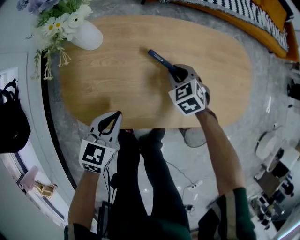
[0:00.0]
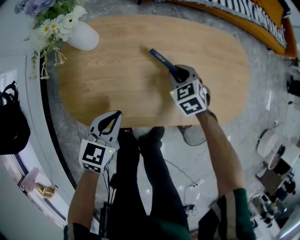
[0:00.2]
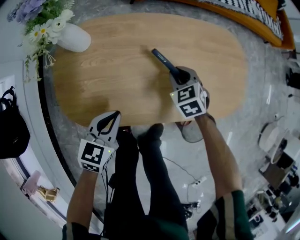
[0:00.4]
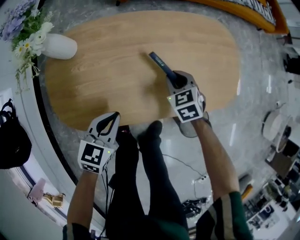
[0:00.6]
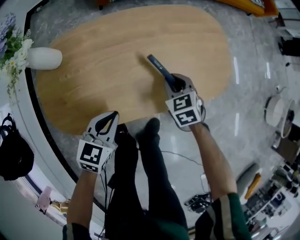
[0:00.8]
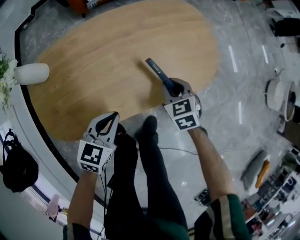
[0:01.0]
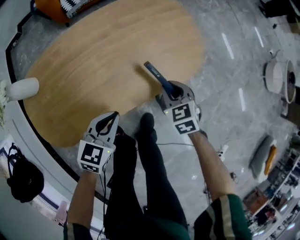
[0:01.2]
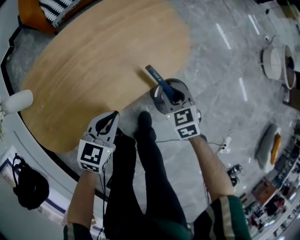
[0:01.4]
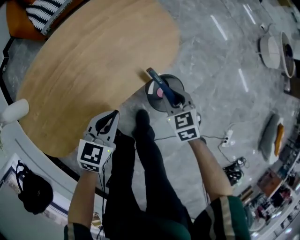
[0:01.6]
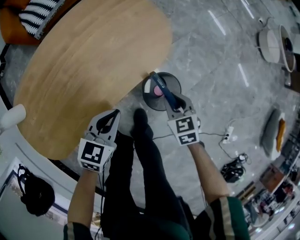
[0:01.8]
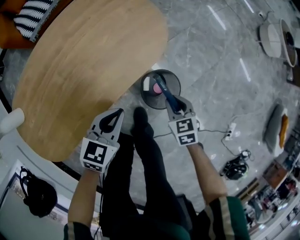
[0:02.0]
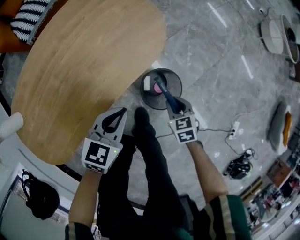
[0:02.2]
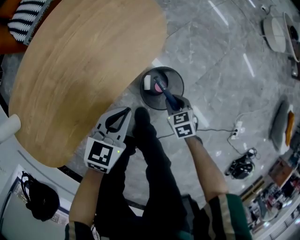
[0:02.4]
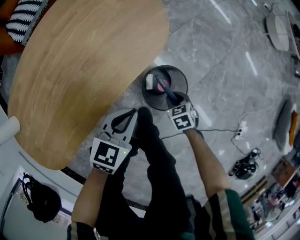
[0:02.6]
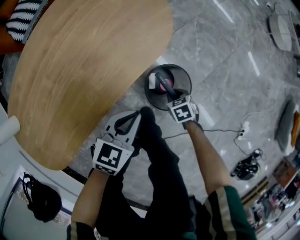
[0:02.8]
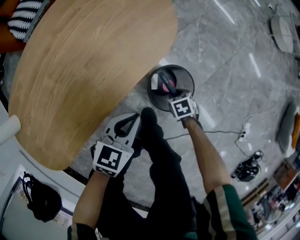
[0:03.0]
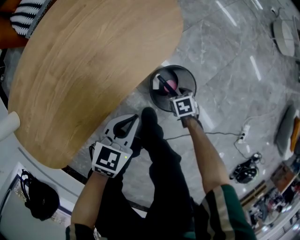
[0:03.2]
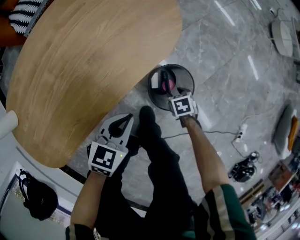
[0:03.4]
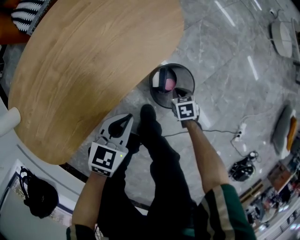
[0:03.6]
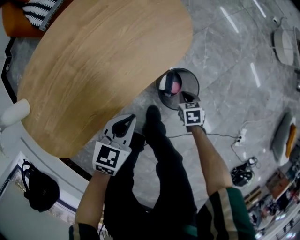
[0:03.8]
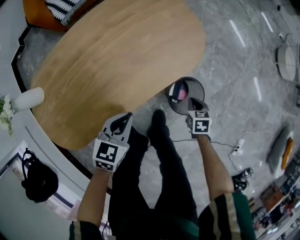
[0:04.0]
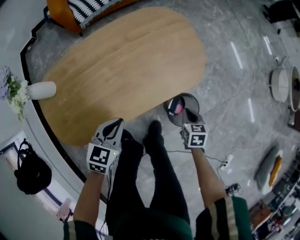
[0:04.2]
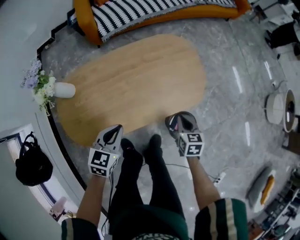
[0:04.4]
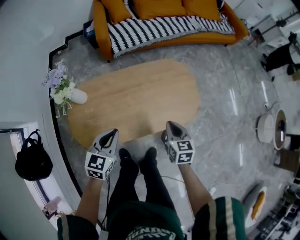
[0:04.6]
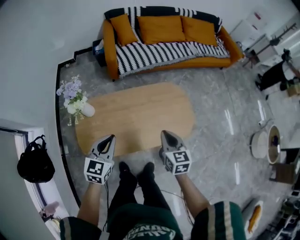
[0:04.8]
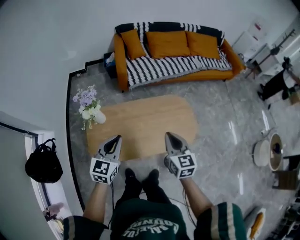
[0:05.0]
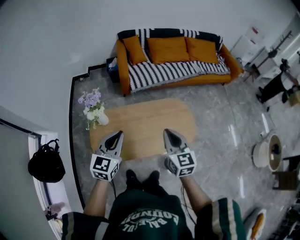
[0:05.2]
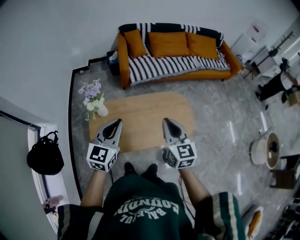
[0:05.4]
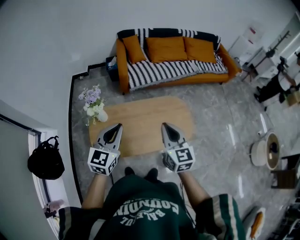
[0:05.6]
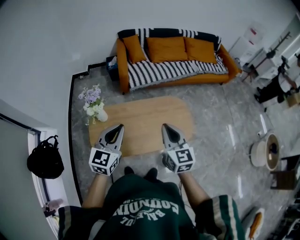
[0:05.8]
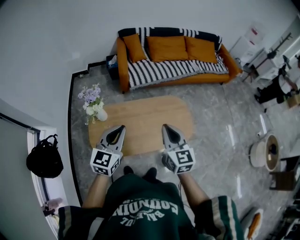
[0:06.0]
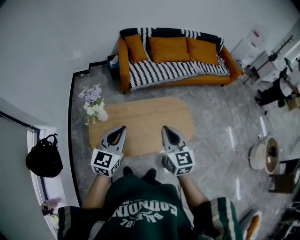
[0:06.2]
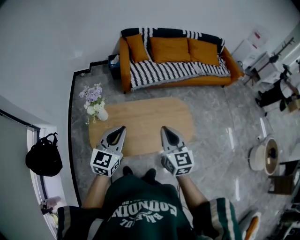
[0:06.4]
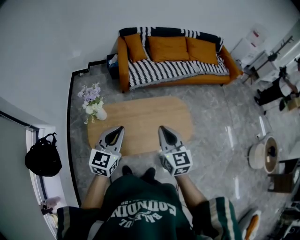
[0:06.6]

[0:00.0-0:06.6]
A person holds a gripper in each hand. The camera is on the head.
0:00.0 to 0:01.6: The right gripper shifts by some 40 cm, and rotates around the line of its fingers by approximately 50 degrees, clockwise from behind, while the left gripper shifts by approximately 30 cm, and turns by about 40 degrees.
0:01.6 to 0:03.2: The left gripper heads downward, covering some 10 cm; the right gripper shifts about 25 cm downward, and changes its angle by roughly 40 degrees.
0:03.2 to 0:05.0: The two grippers go some 60 cm upward. The right gripper tips its fingers upward by roughly 60 degrees, and closes up, while the left gripper changes its angle by about 50 degrees.
0:05.0 to 0:06.6: Both grippers travel together upward, about 10 cm.

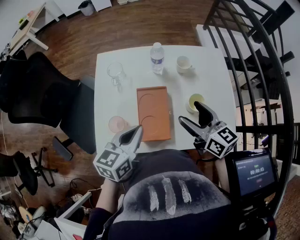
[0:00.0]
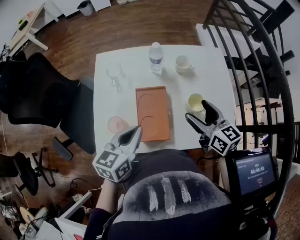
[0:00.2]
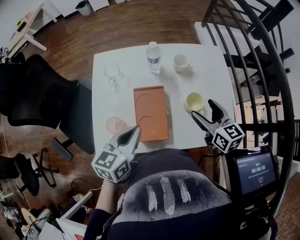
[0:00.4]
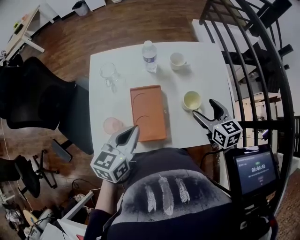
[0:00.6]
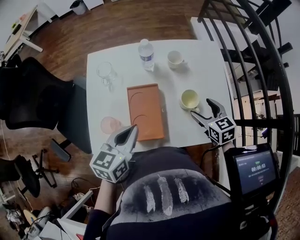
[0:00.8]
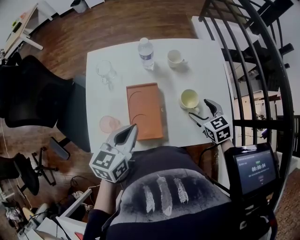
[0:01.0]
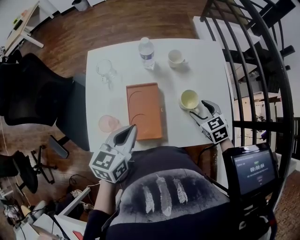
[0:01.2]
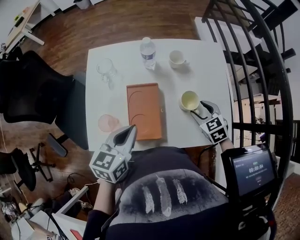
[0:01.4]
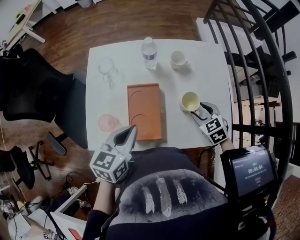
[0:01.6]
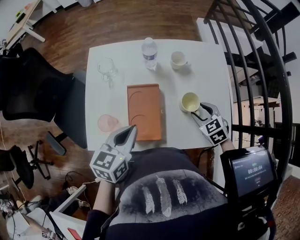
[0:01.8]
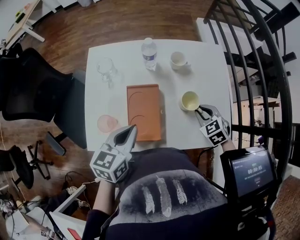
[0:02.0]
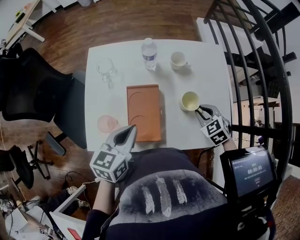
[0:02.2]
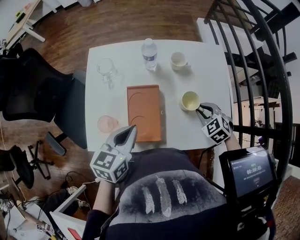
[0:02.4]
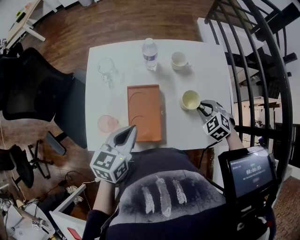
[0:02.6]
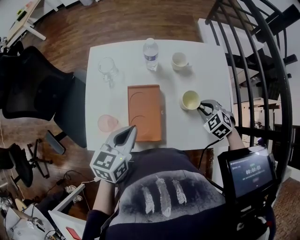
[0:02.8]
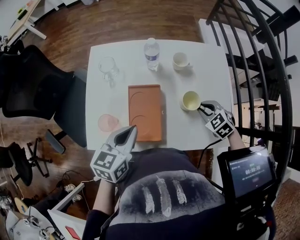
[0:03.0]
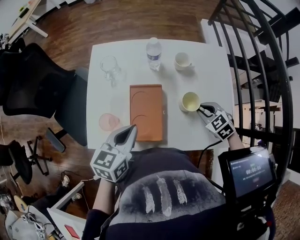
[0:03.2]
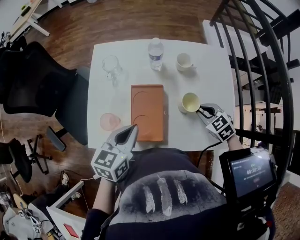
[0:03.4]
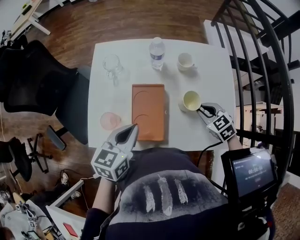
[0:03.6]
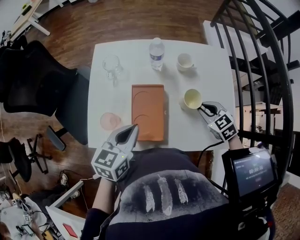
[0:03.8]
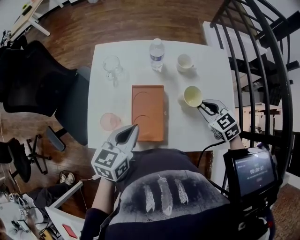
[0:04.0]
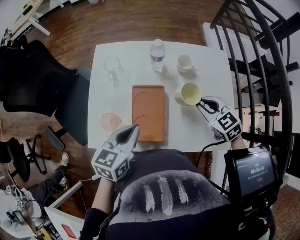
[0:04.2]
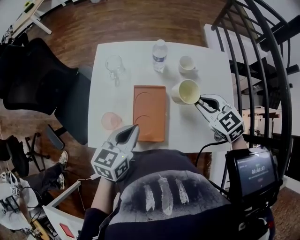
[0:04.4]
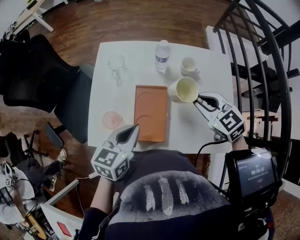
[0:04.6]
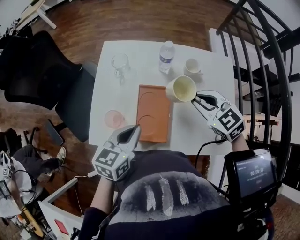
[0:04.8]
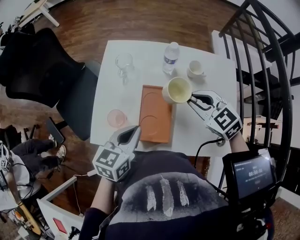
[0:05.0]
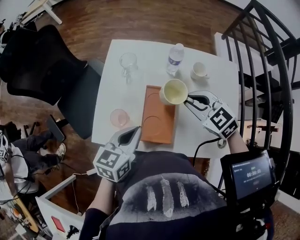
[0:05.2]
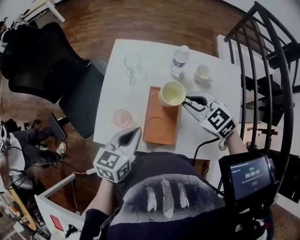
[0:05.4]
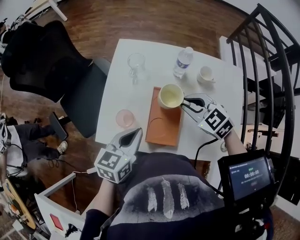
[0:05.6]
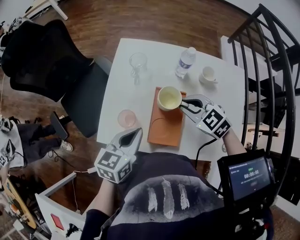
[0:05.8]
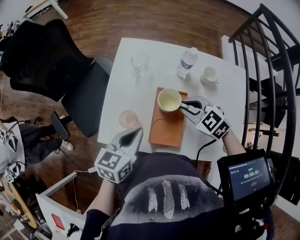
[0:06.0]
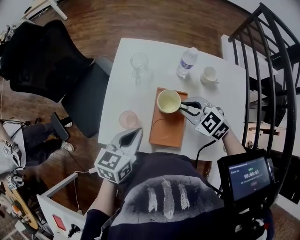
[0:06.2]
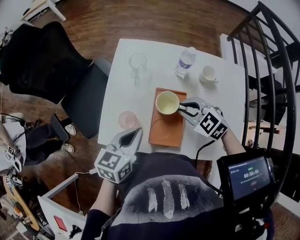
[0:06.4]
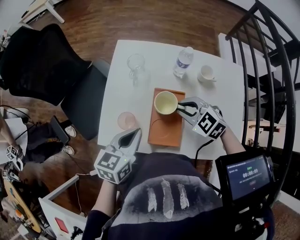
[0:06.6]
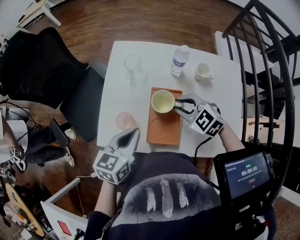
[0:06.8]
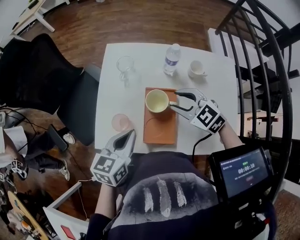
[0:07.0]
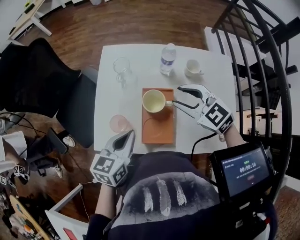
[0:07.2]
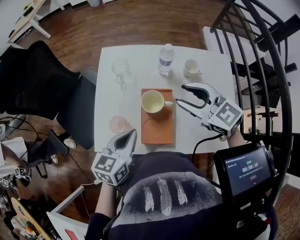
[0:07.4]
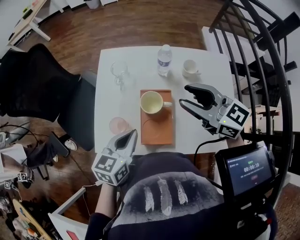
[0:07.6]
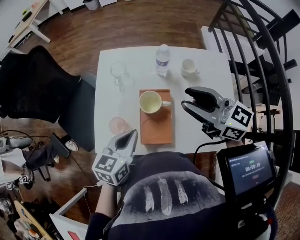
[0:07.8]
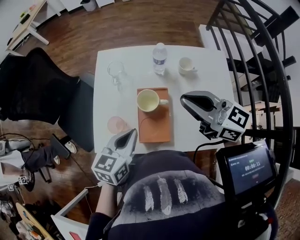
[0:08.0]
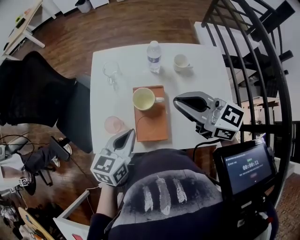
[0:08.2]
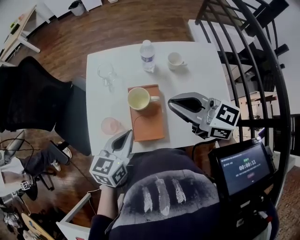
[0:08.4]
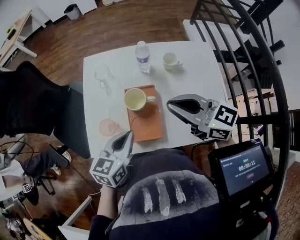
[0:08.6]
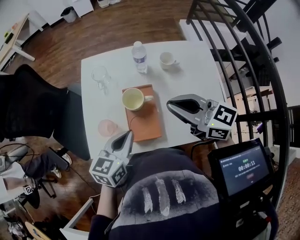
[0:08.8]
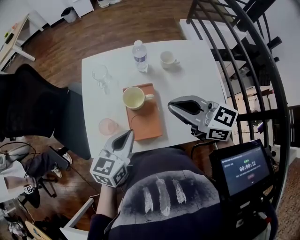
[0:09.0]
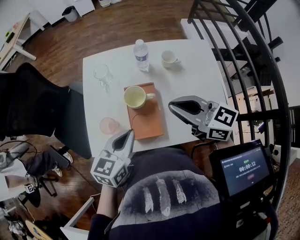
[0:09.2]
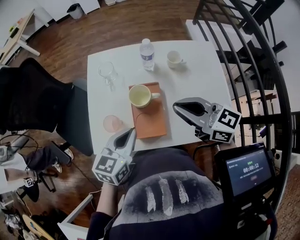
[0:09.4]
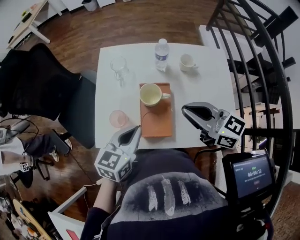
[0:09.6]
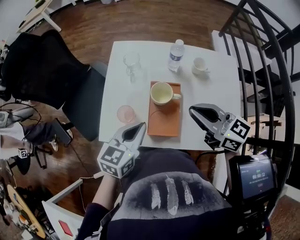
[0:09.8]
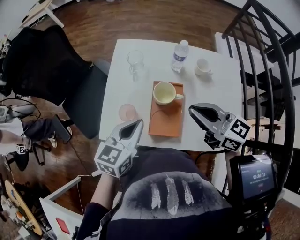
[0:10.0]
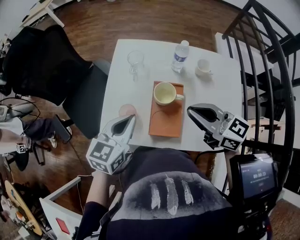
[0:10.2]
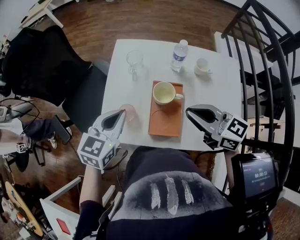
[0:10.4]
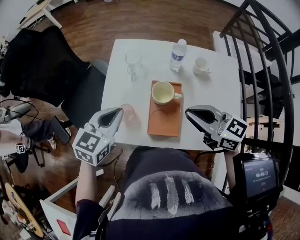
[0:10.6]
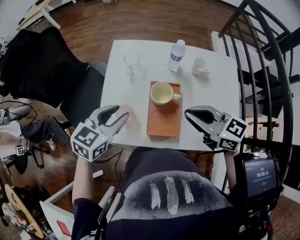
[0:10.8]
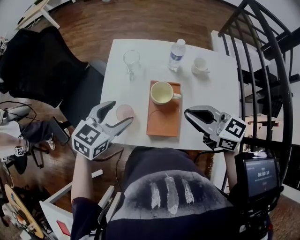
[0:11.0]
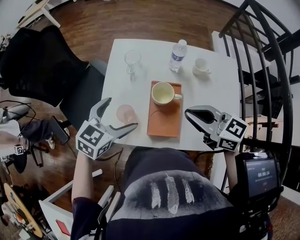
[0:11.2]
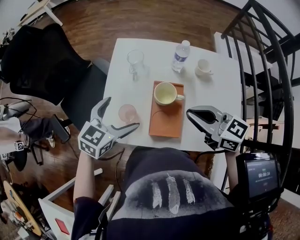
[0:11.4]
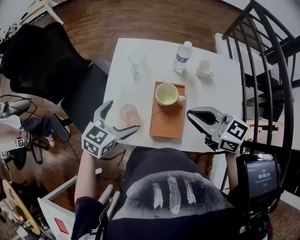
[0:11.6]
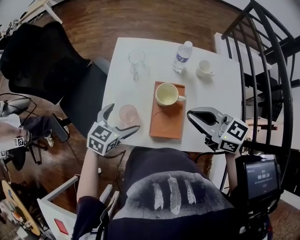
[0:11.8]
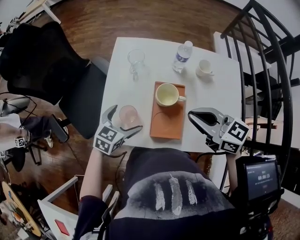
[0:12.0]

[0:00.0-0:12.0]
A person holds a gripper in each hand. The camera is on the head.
0:00.0 to 0:01.6: The right gripper travels downward and to the right by about 20 cm, tips its fingers downward by some 40 degrees, and closes up.
0:01.6 to 0:03.0: The right gripper closes.
0:03.0 to 0:04.4: The right gripper moves upward and to the left, about 15 cm.
0:04.4 to 0:06.0: The left gripper heads to the left, covering approximately 5 cm. Meanwhile the right gripper is displaced to the left by some 15 cm.
0:06.0 to 0:07.6: The right gripper shifts approximately 15 cm upward, and tips its fingers upward by some 30 degrees.
0:07.6 to 0:09.0: The right gripper travels backward by about 5 cm, and closes its fingers.
0:09.0 to 0:10.4: The left gripper shifts some 10 cm to the left and forward.
0:10.4 to 0:12.0: The left gripper travels downward by some 15 cm, and opens its fingers.

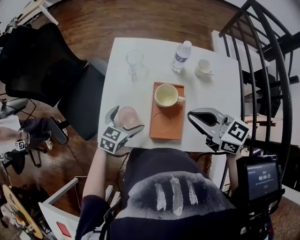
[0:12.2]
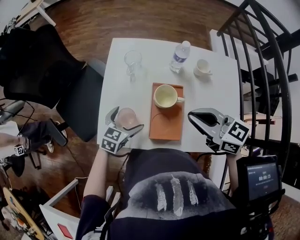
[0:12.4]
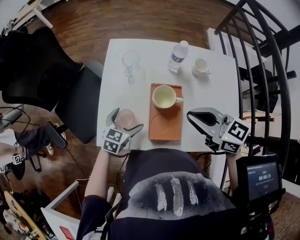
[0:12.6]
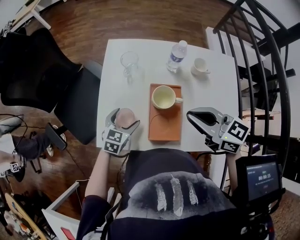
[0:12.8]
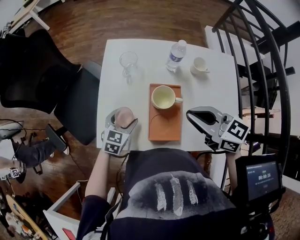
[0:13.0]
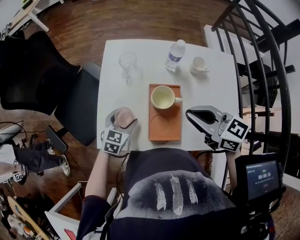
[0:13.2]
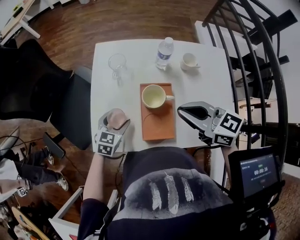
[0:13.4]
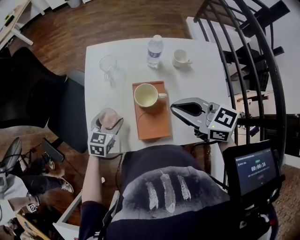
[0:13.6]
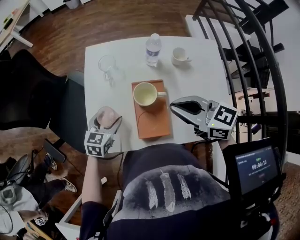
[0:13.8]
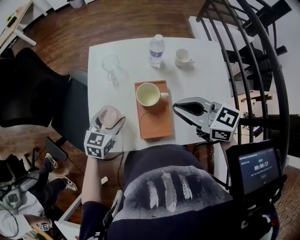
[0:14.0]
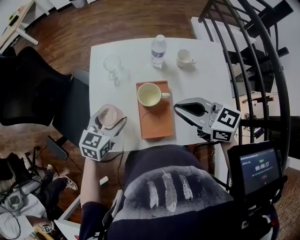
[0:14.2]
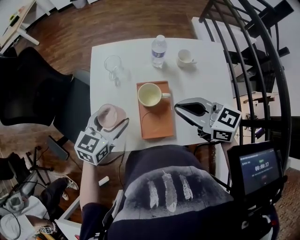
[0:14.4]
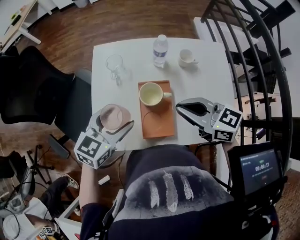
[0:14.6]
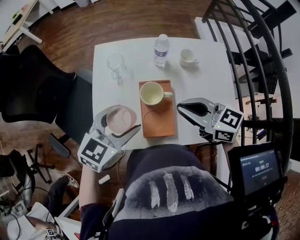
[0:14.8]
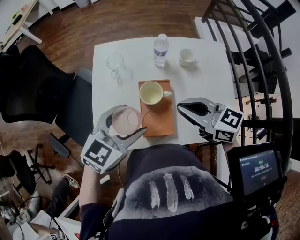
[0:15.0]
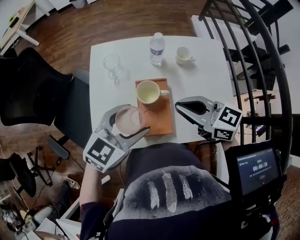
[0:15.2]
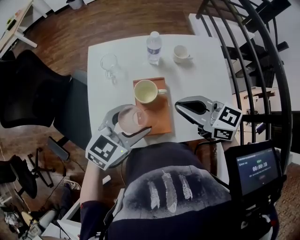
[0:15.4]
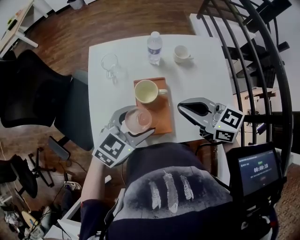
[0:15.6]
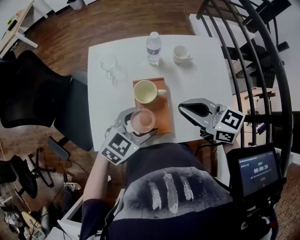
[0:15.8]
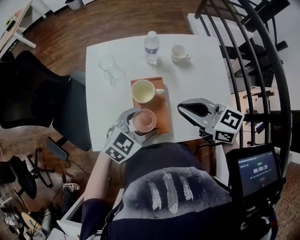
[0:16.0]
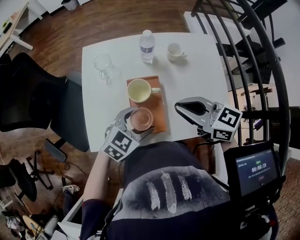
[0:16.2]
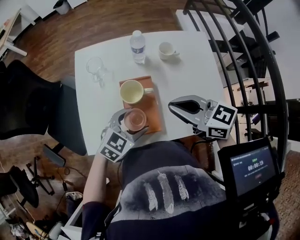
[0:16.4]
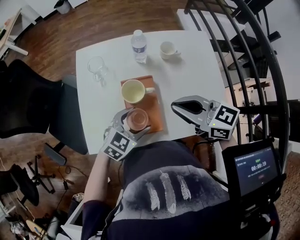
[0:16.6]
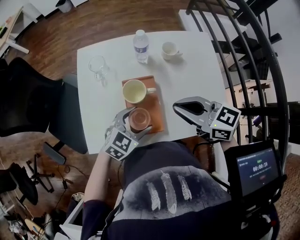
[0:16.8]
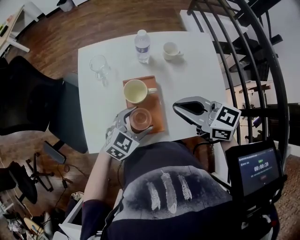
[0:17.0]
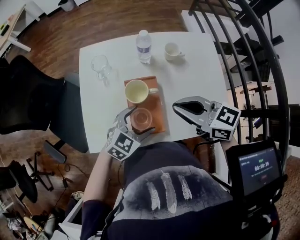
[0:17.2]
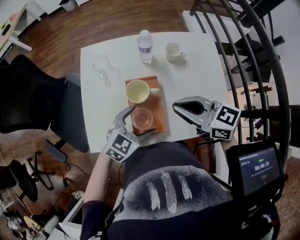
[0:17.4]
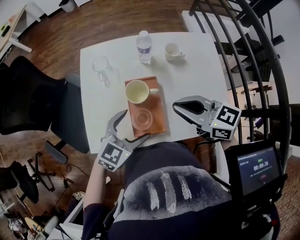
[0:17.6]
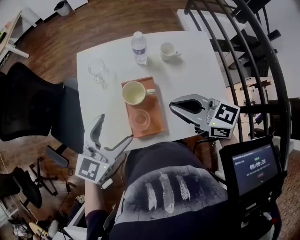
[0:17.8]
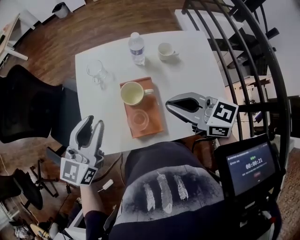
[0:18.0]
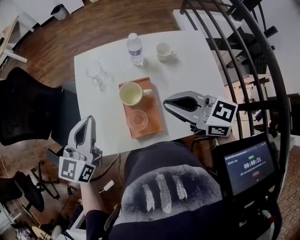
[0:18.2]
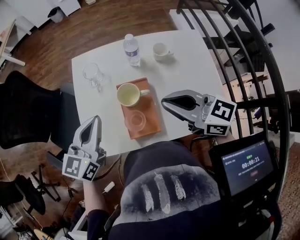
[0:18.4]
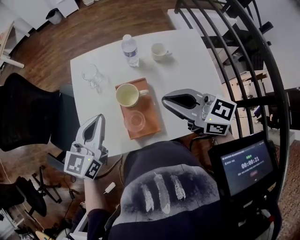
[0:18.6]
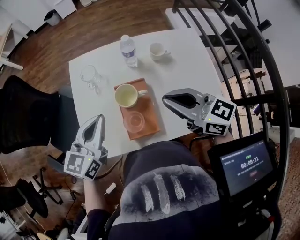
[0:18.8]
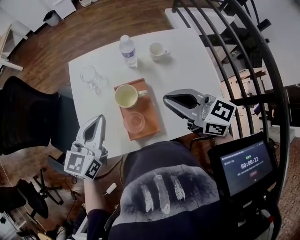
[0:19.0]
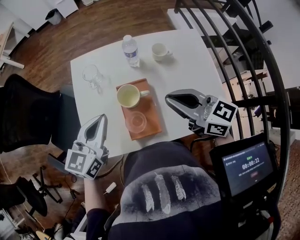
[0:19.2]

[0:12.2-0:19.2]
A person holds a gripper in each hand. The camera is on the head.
0:12.2 to 0:13.6: The left gripper closes up.
0:13.6 to 0:15.0: The left gripper shifts about 20 cm upward and to the right, and rotates some 30 degrees.
0:15.0 to 0:16.4: The left gripper goes about 15 cm downward and to the right.
0:16.4 to 0:17.8: The left gripper goes about 15 cm upward and to the left, and swivels approximately 30 degrees.
0:17.8 to 0:19.2: The left gripper closes its fingers.
